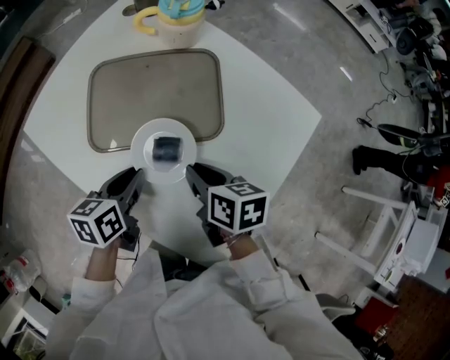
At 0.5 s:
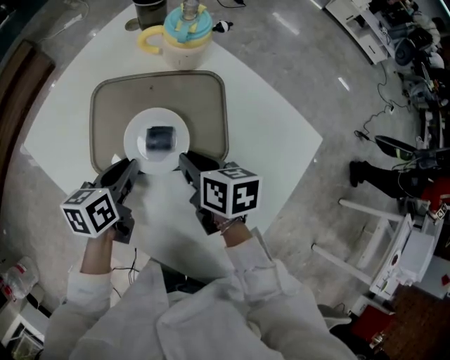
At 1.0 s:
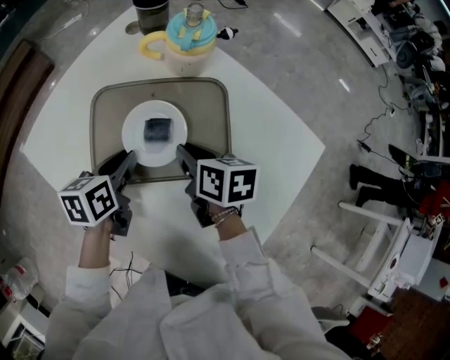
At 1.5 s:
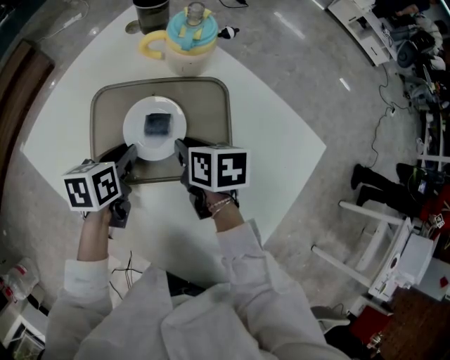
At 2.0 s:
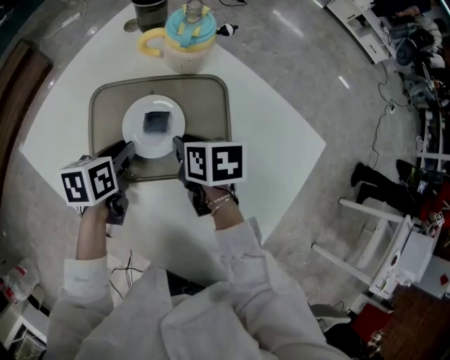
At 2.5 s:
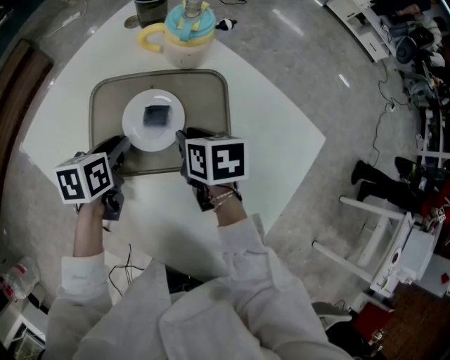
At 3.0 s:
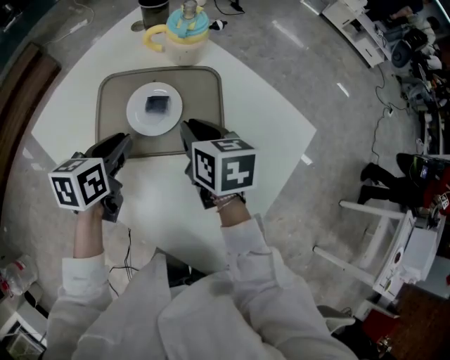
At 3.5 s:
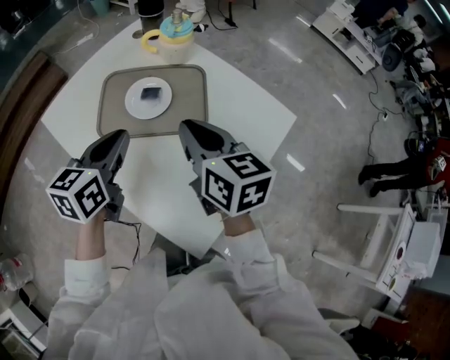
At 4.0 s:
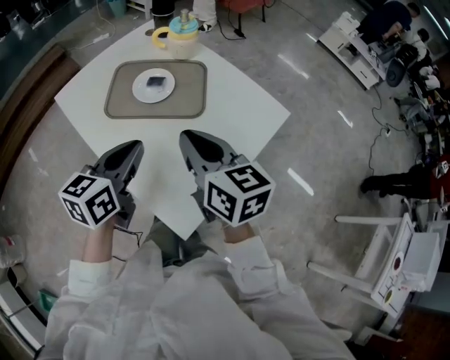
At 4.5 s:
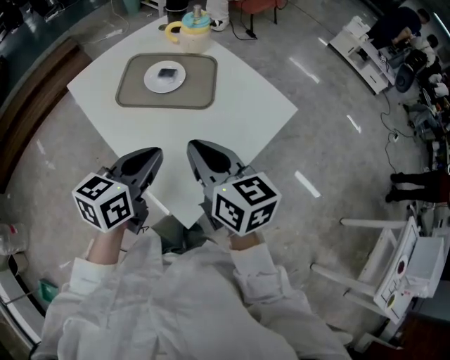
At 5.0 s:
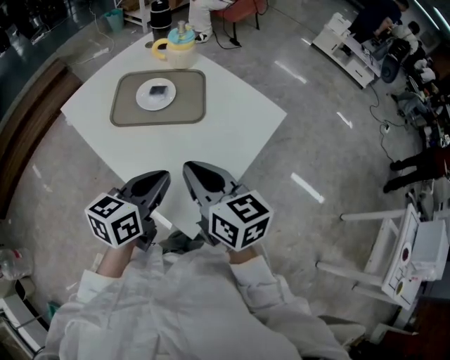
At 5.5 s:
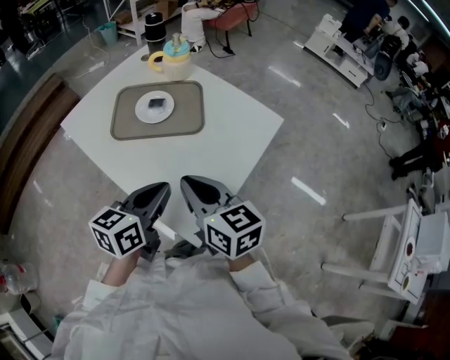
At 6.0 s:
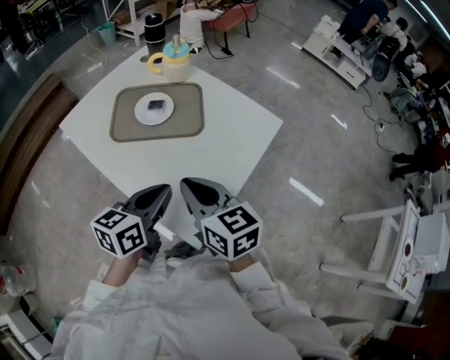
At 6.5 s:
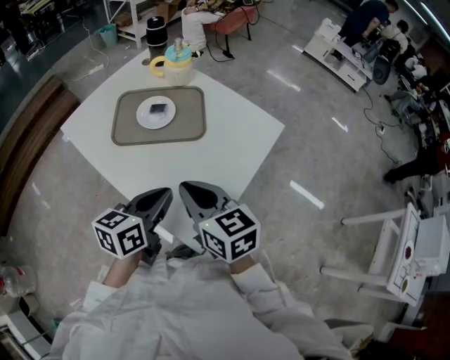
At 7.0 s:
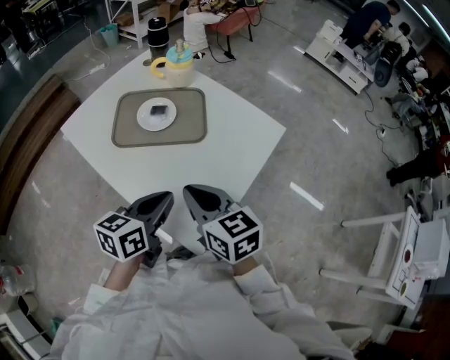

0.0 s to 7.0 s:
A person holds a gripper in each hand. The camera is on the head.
0.0 to 2.0 s: Both grippers move forward, about 15 cm.
2.0 to 3.5 s: Both grippers move upward and backward, roughly 25 cm. The left gripper turns by about 30 degrees. The right gripper turns by about 40 degrees.
3.5 to 5.0 s: The left gripper shifts approximately 20 cm backward and to the right, while the right gripper moves backward, about 15 cm.
5.0 to 7.0 s: The grippers move only a little.

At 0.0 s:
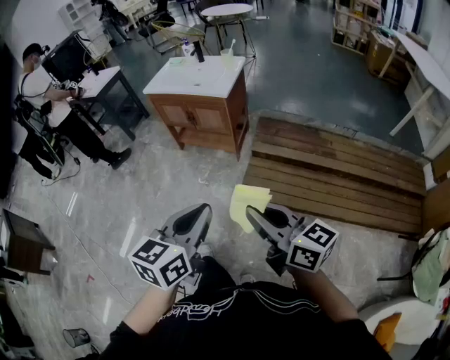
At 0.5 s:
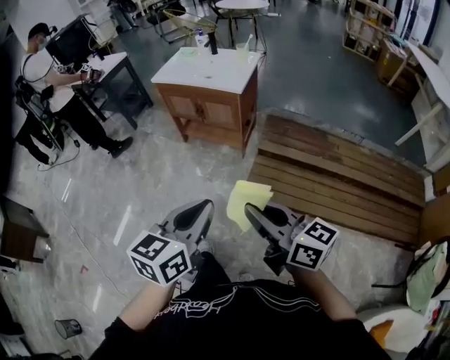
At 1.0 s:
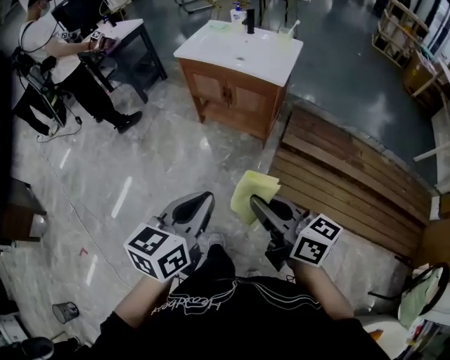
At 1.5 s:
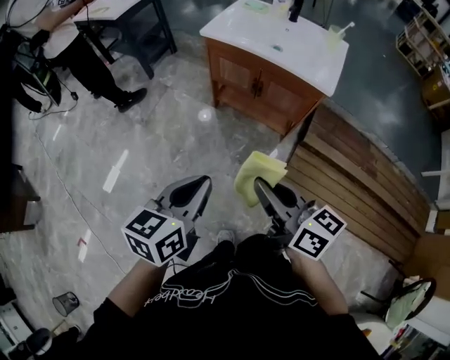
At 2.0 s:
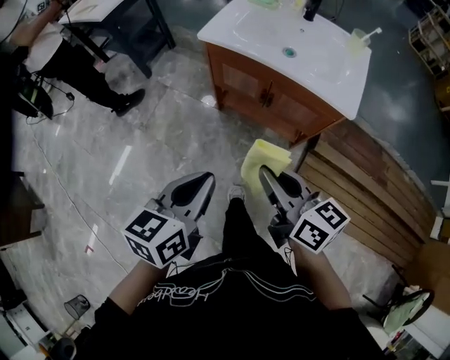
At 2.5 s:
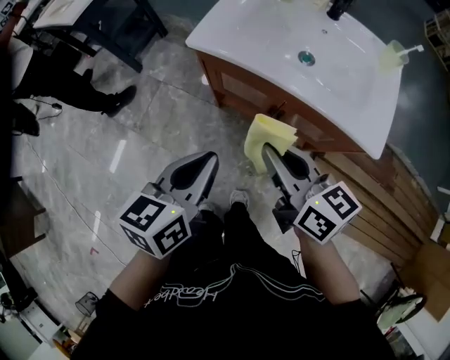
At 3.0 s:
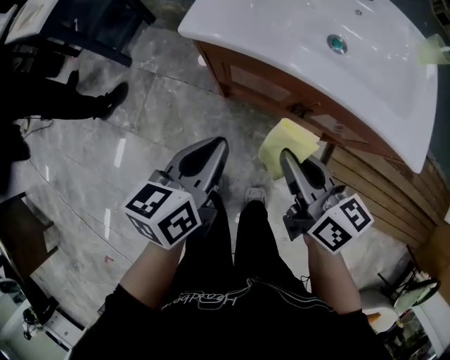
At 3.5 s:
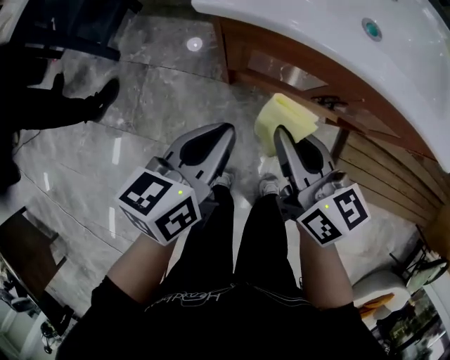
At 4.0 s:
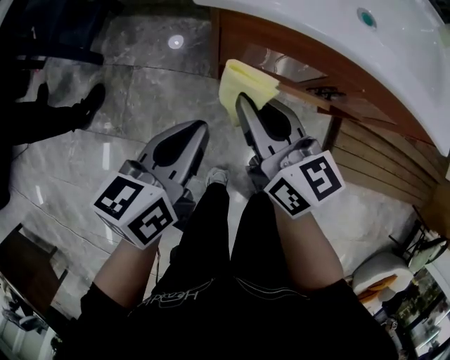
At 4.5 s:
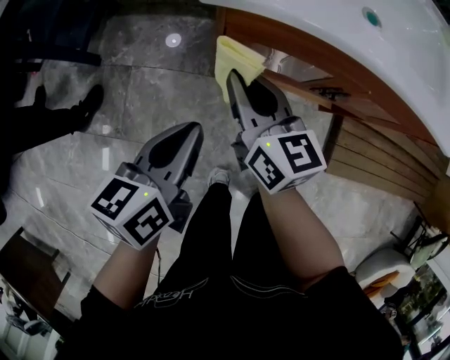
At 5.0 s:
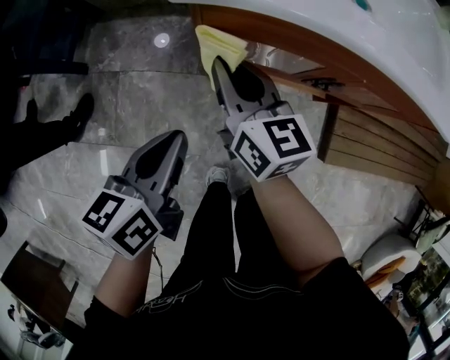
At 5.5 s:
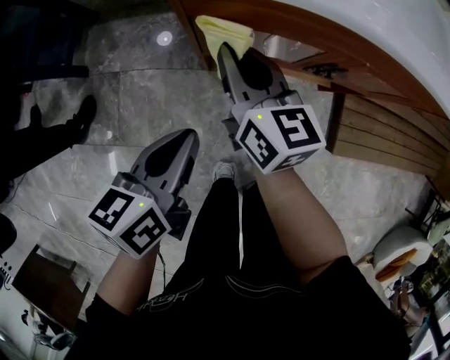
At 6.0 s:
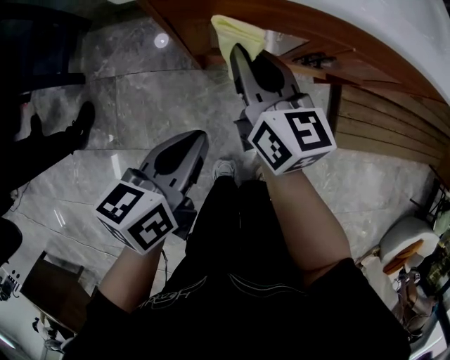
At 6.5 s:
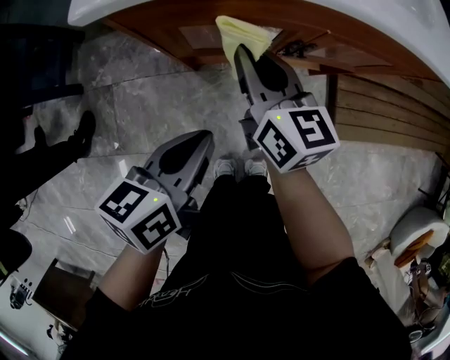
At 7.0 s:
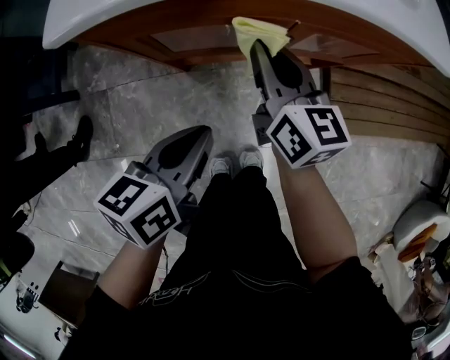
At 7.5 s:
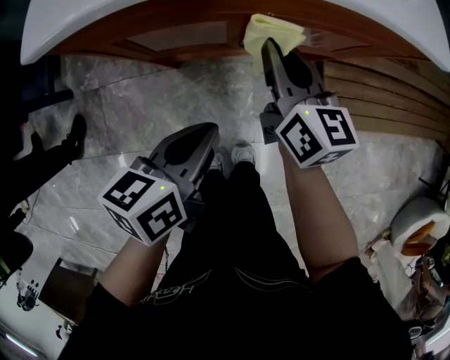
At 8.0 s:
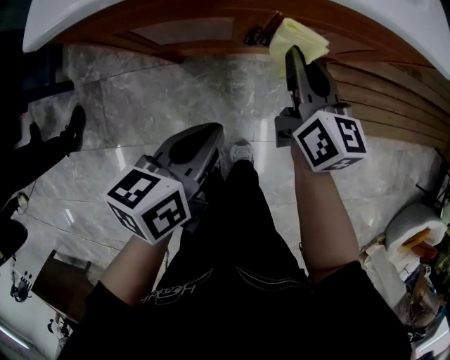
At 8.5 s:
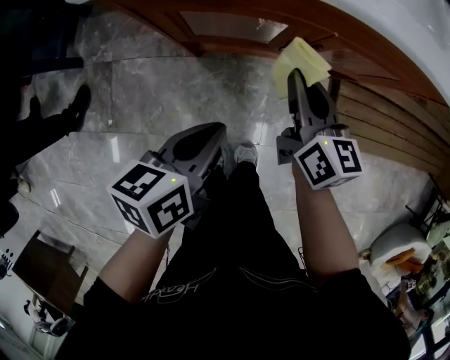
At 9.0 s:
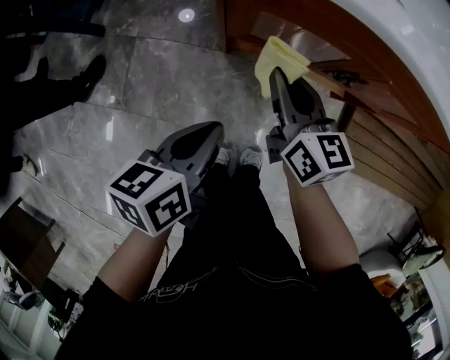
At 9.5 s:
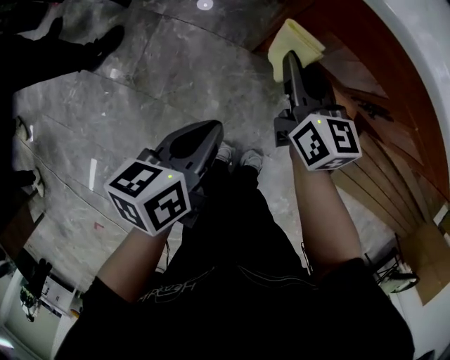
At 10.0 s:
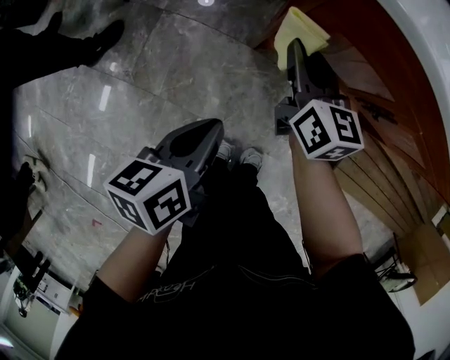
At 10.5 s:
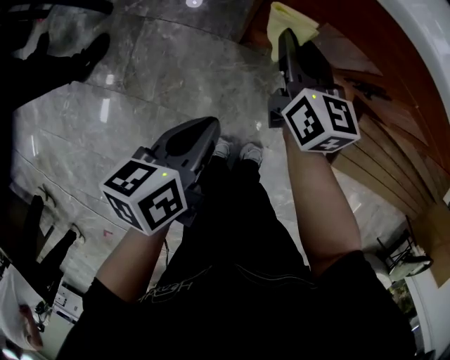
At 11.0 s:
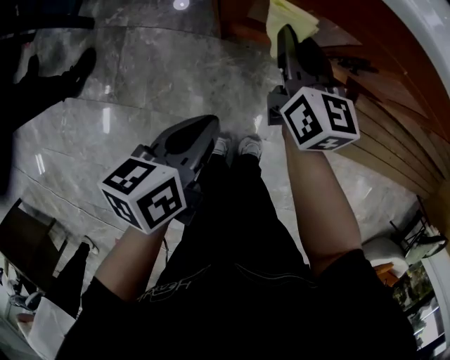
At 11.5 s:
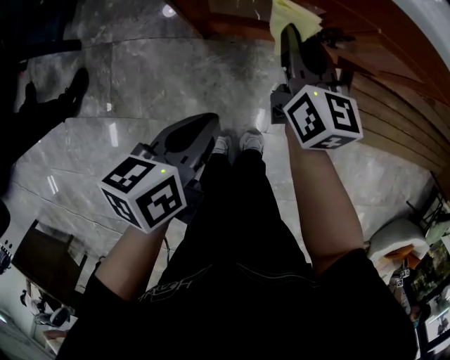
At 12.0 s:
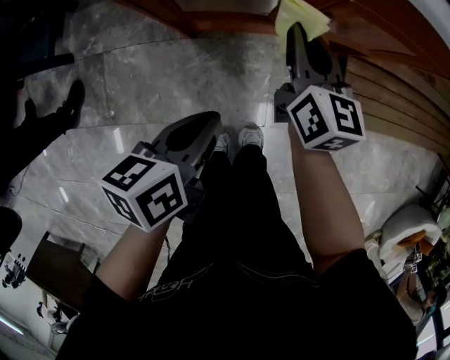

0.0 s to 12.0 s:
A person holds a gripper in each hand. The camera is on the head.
0.0 to 2.0 s: The two grippers travel together, forward and to the left, about 60 cm.
2.0 to 4.0 s: The grippers both shift forward, downward and to the left by some 40 cm.
4.0 to 6.0 s: The left gripper moves approximately 5 cm. The right gripper shifts some 5 cm forward.
6.0 to 8.0 s: The right gripper heads to the right, covering about 20 cm; the left gripper goes approximately 15 cm to the right.
8.0 to 10.0 s: The right gripper shifts by about 30 cm, and swivels approximately 30 degrees. The left gripper shifts by some 25 cm, and changes its angle by approximately 30 degrees.
10.0 to 12.0 s: The right gripper shifts by some 25 cm, and swivels roughly 30 degrees; the left gripper changes place by about 15 cm, and swivels approximately 30 degrees.

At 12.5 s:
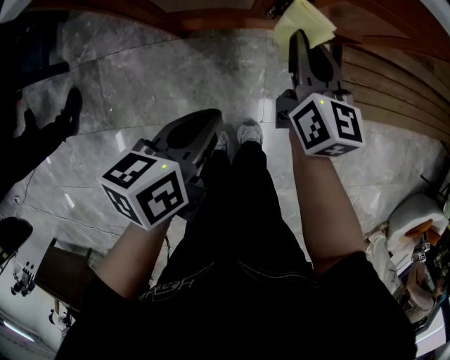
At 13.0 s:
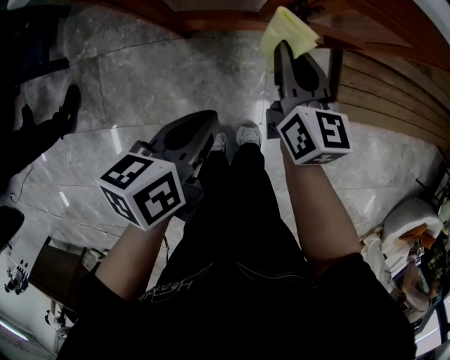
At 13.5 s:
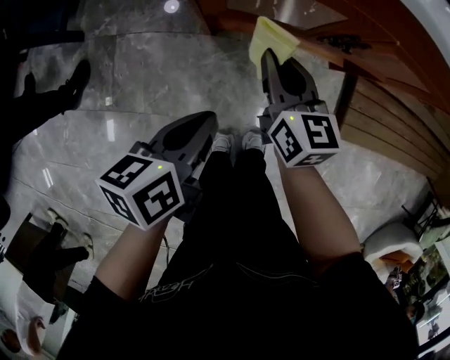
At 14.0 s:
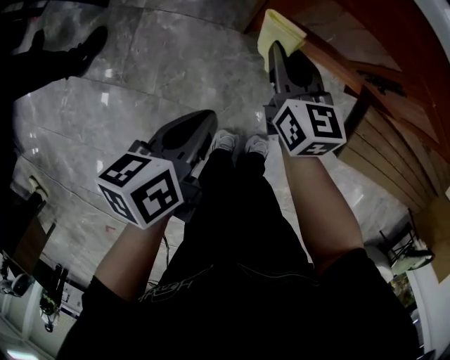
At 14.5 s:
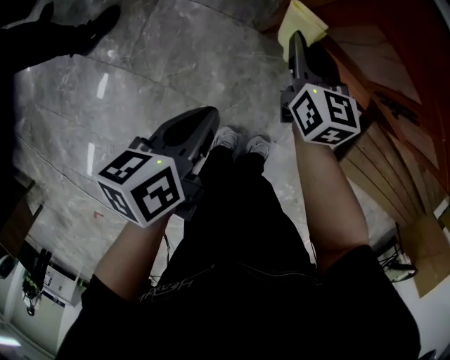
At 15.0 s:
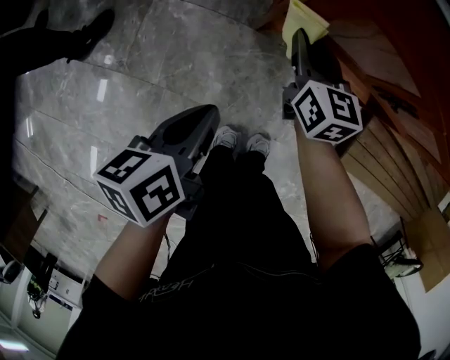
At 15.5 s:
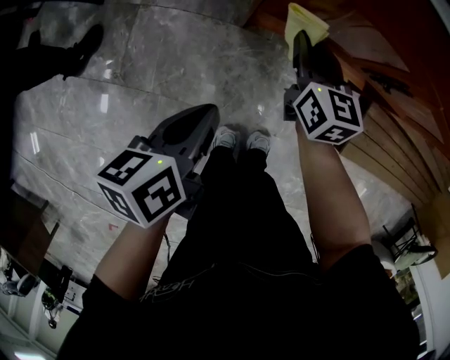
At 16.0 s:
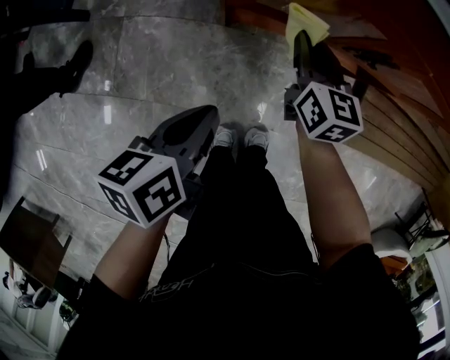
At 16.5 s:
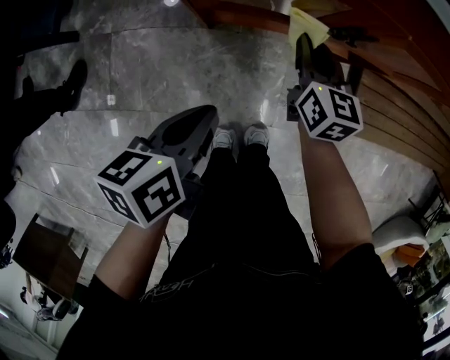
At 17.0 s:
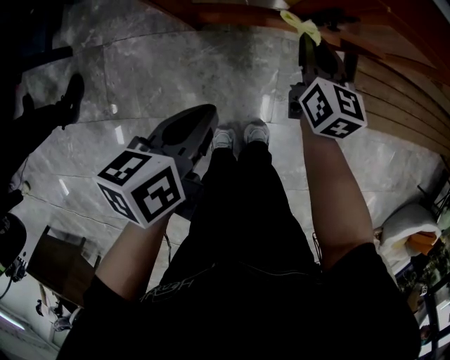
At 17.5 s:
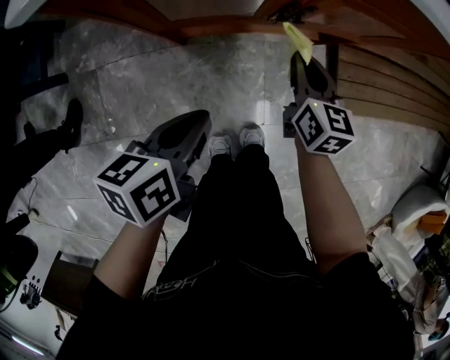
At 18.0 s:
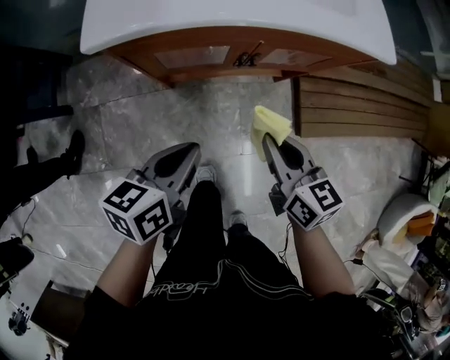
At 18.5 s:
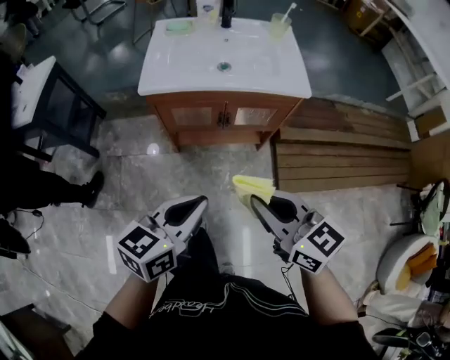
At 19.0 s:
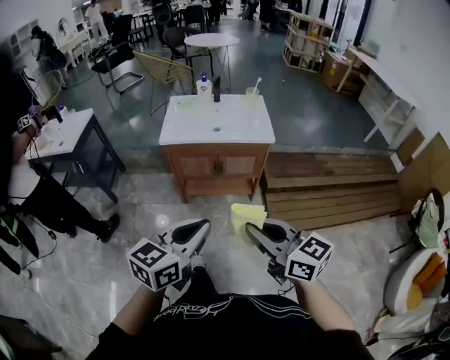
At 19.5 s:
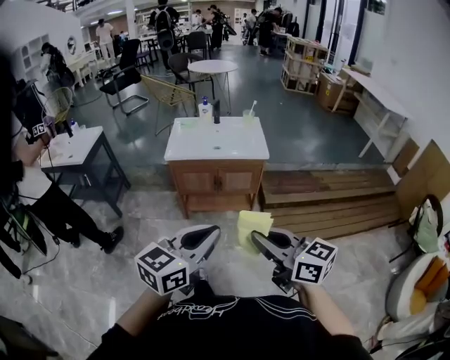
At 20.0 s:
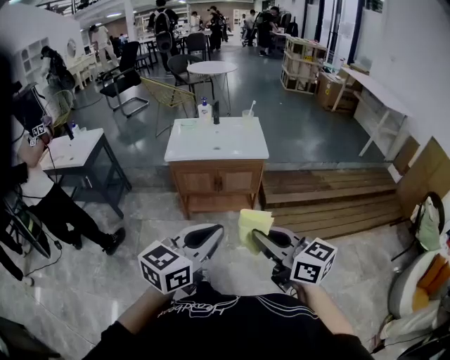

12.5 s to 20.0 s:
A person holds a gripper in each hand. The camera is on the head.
12.5 to 14.5 s: The left gripper ends up some 20 cm from where it was, and changes its angle by approximately 30 degrees. Meanwhile the right gripper moves approximately 30 cm, and changes its angle by some 30 degrees.
14.5 to 16.5 s: The left gripper moves to the right, approximately 10 cm, and rotates about 20 degrees; the right gripper shifts some 20 cm to the right, and swivels approximately 20 degrees.
16.5 to 18.0 s: The right gripper moves upward, backward and to the right, roughly 25 cm, while the left gripper shifts about 15 cm upward and to the right, and swivels some 20 degrees.
18.0 to 20.0 s: The pair of grippers is taken backward, some 40 cm. The grippers both shift upward by about 40 cm. The right gripper rotates some 30 degrees. The left gripper swivels approximately 40 degrees.
